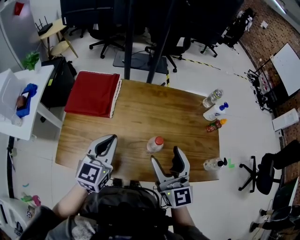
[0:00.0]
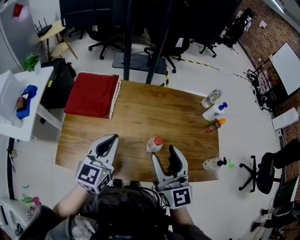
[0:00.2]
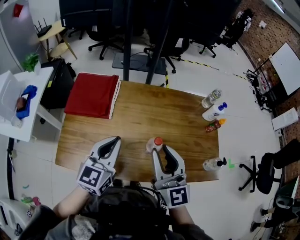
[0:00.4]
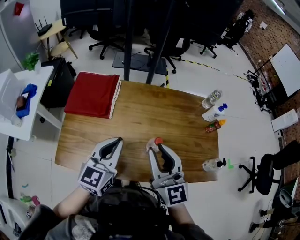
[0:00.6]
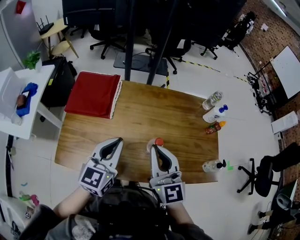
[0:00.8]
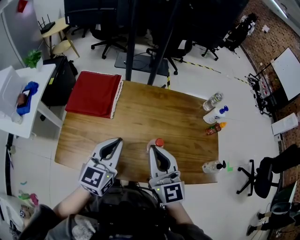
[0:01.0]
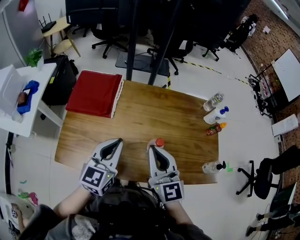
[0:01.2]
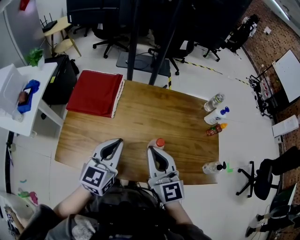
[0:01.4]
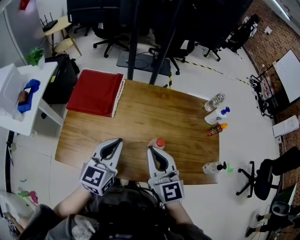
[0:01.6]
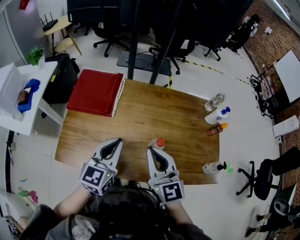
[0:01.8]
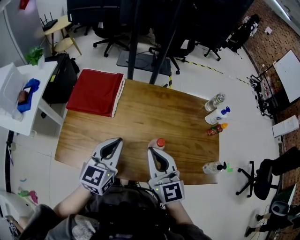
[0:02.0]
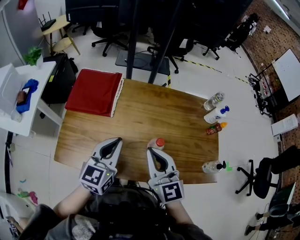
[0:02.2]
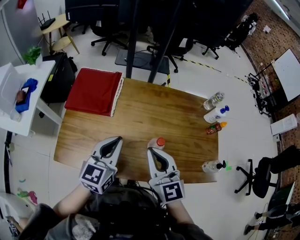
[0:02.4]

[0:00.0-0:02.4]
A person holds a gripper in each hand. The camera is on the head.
0:00.0 to 0:01.2: The right gripper shifts about 5 cm to the left, and closes.
0:01.2 to 0:02.4: The grippers stay close to where they were, moving slightly.

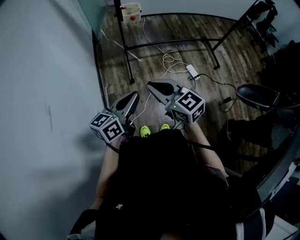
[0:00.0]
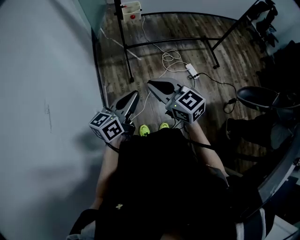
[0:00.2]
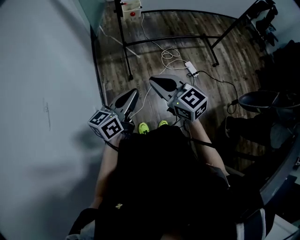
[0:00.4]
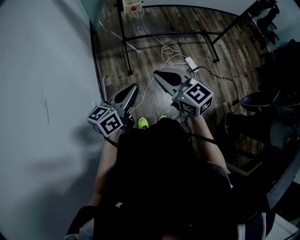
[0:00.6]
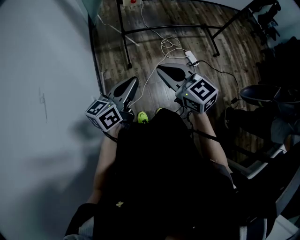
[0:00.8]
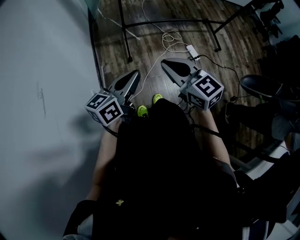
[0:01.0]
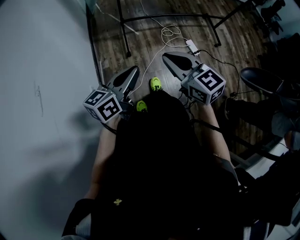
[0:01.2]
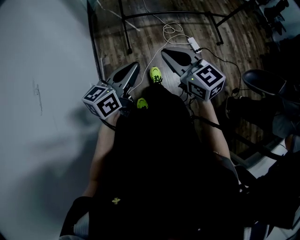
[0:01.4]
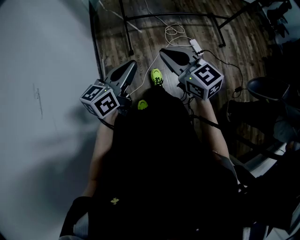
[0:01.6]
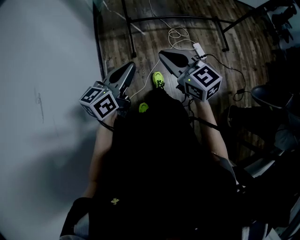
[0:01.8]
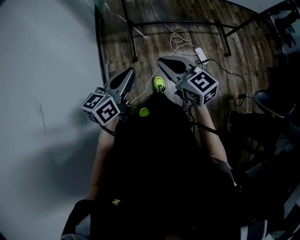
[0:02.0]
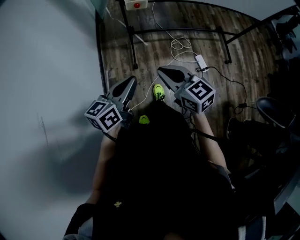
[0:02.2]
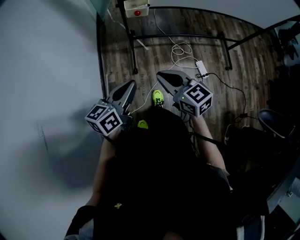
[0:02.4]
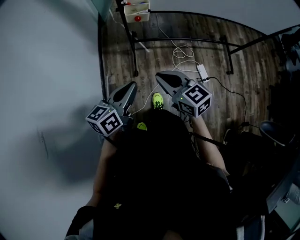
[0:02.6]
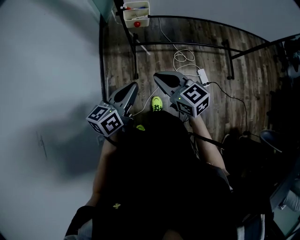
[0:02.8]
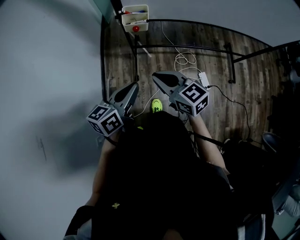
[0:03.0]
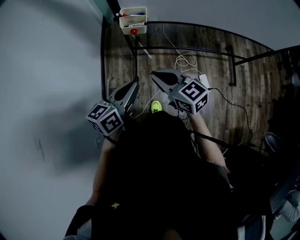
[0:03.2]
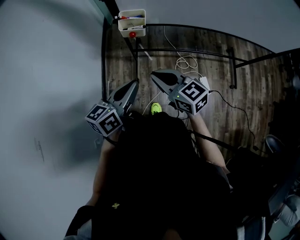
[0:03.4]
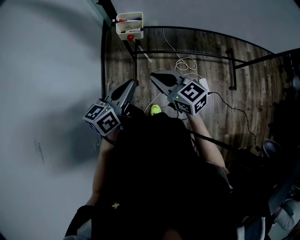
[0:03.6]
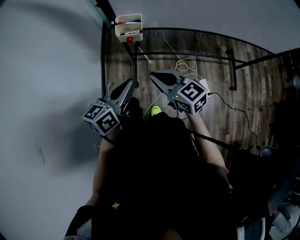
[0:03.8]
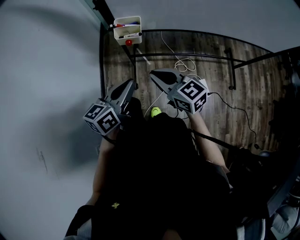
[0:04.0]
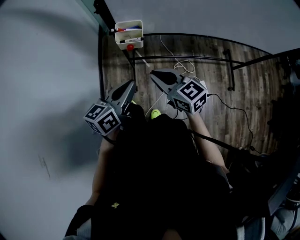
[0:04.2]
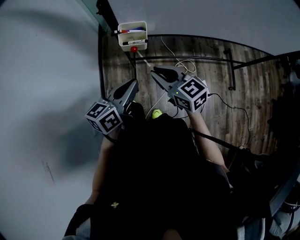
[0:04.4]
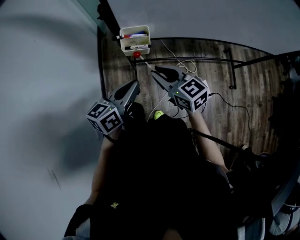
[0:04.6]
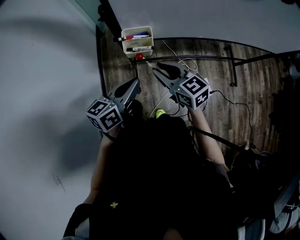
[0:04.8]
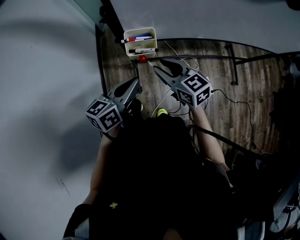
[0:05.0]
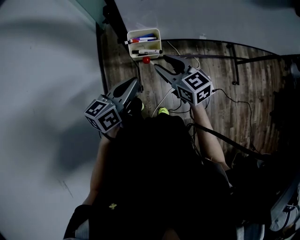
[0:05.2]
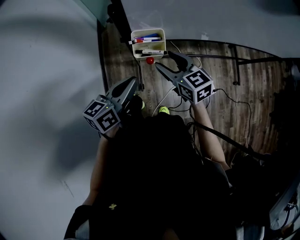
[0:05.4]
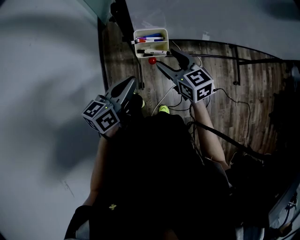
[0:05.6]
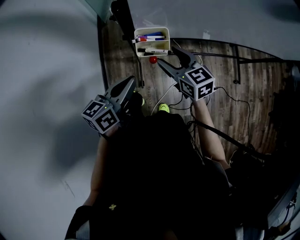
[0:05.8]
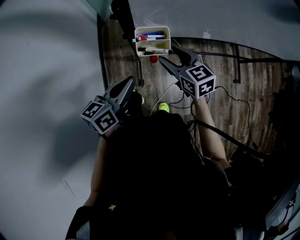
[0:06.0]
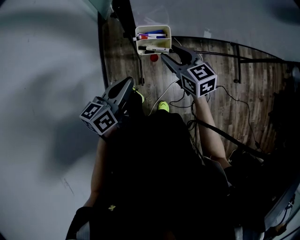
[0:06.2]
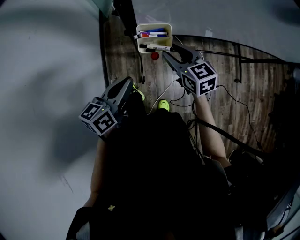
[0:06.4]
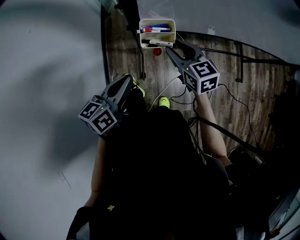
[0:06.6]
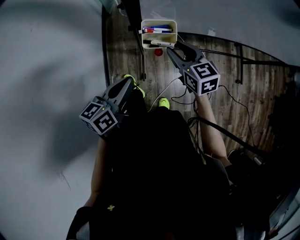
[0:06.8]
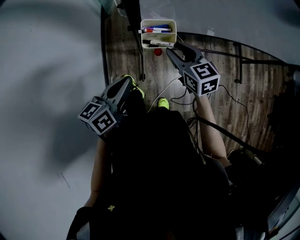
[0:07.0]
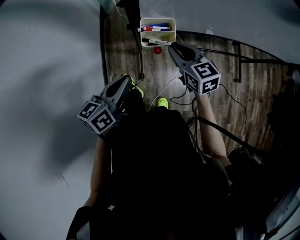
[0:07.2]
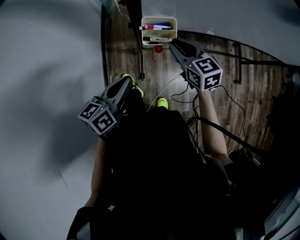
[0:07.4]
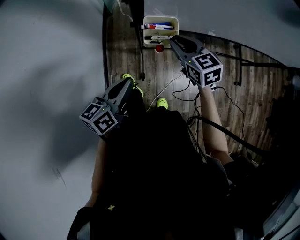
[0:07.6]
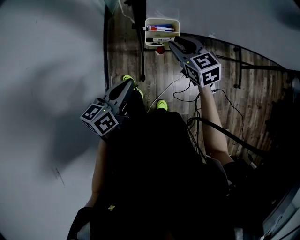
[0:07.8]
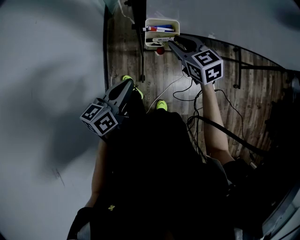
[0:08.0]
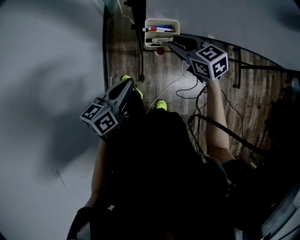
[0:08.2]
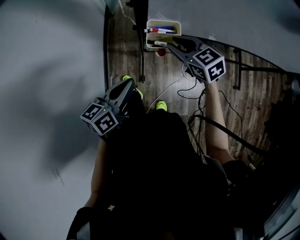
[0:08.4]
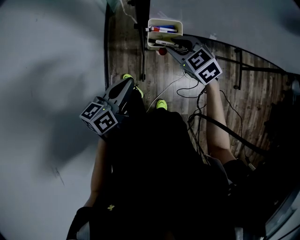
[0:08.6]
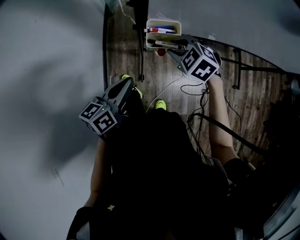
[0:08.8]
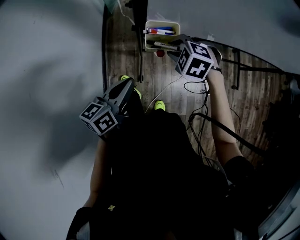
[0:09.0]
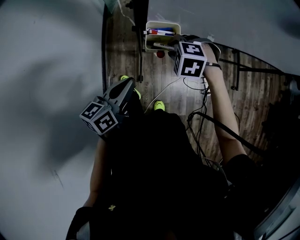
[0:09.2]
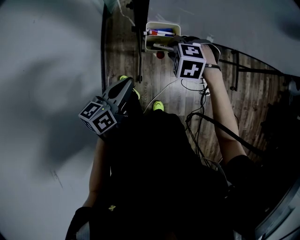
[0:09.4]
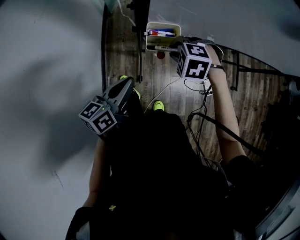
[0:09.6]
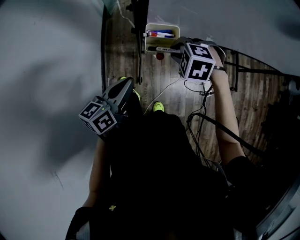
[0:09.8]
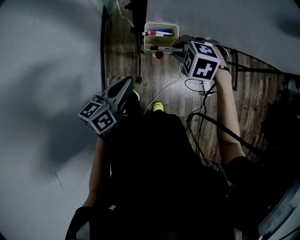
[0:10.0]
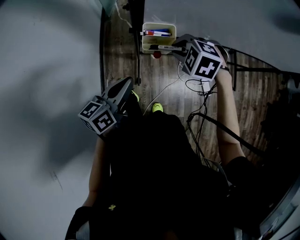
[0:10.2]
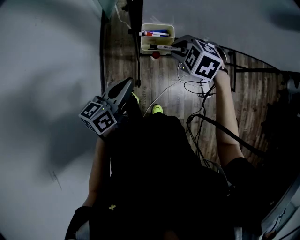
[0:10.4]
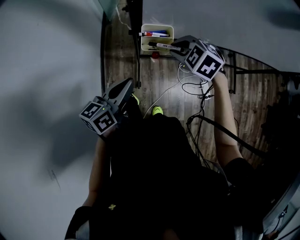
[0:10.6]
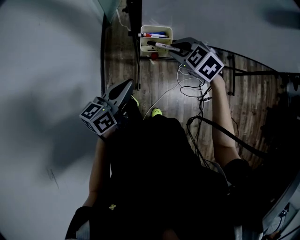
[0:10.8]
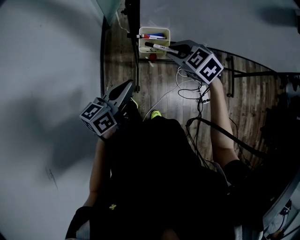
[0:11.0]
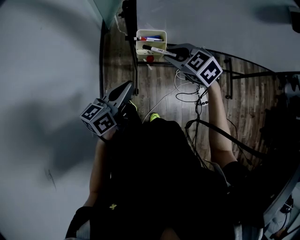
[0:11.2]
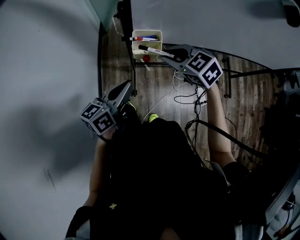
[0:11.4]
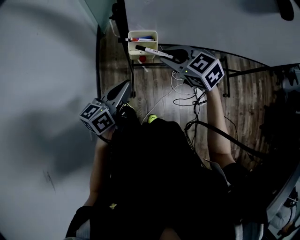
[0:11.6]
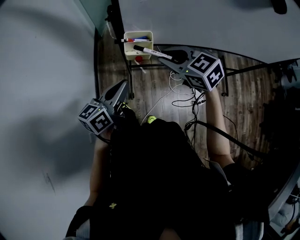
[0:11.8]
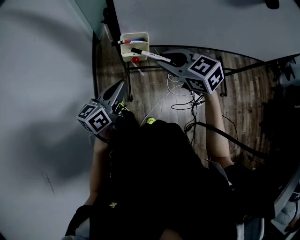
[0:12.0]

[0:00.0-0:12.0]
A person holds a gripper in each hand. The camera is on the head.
0:00.0 to 0:01.6: The right gripper changes place by some 5 cm.
0:01.6 to 0:03.0: The two grippers go approximately 25 cm forward.
0:03.0 to 0:04.4: Both grippers travel together forward, about 10 cm.
0:04.4 to 0:06.0: The right gripper is displaced forward and downward by roughly 15 cm, and opens its fingers. The left gripper is displaced forward and to the left by approximately 10 cm.
0:06.0 to 0:07.6: The right gripper closes its fingers, while the left gripper moves roughly 5 cm.
0:07.6 to 0:09.0: The right gripper ends up roughly 5 cm from where it was, and tilts its fingers some 40 degrees downward.
0:09.0 to 0:10.4: The grippers make only small movements.
0:10.4 to 0:12.0: The right gripper goes approximately 10 cm upward and backward, and tilts its fingers roughly 30 degrees upward, while the left gripper ends up roughly 5 cm from where it was.

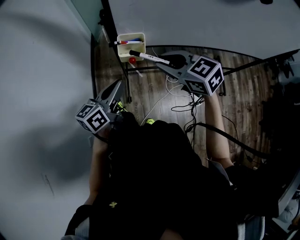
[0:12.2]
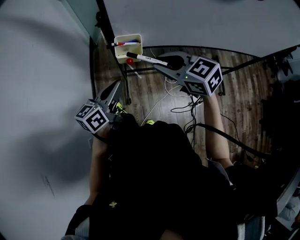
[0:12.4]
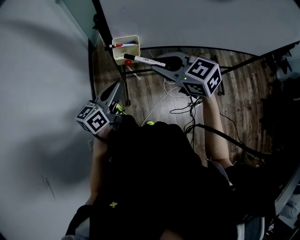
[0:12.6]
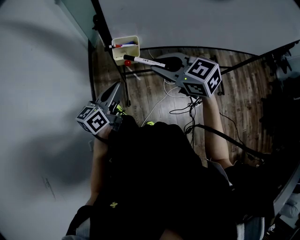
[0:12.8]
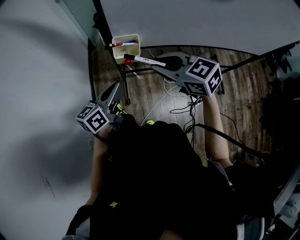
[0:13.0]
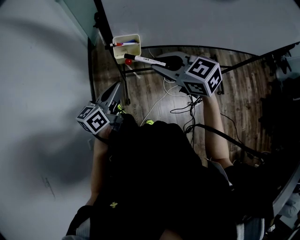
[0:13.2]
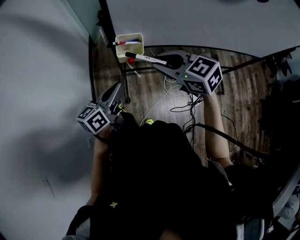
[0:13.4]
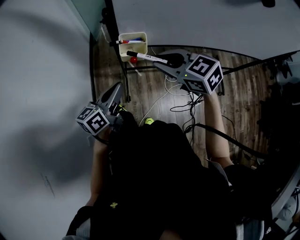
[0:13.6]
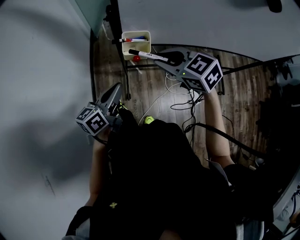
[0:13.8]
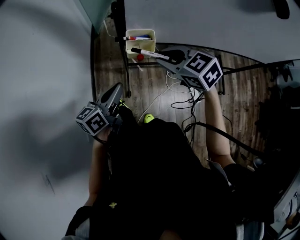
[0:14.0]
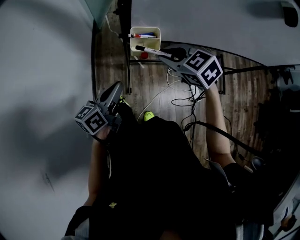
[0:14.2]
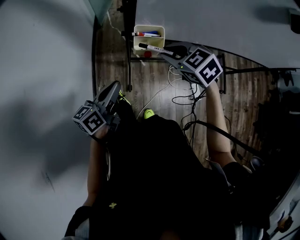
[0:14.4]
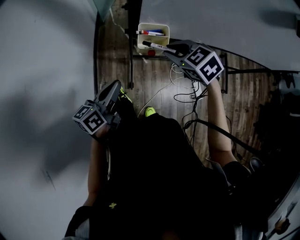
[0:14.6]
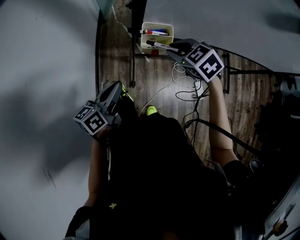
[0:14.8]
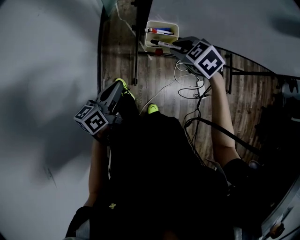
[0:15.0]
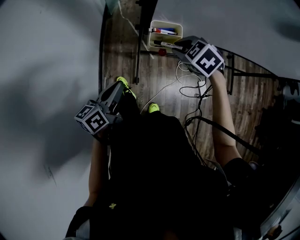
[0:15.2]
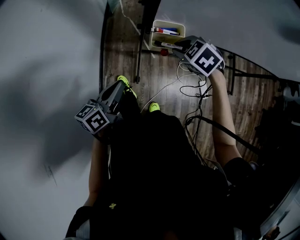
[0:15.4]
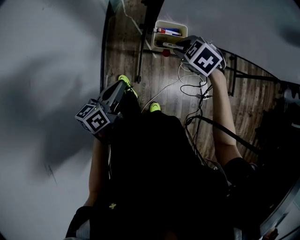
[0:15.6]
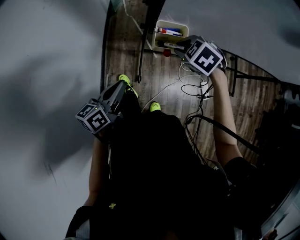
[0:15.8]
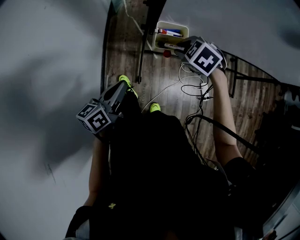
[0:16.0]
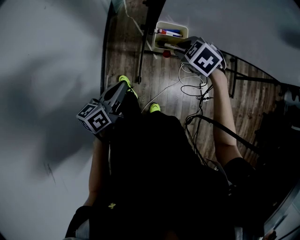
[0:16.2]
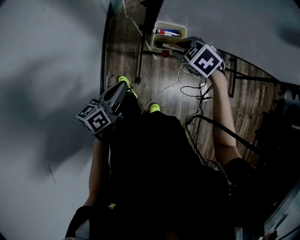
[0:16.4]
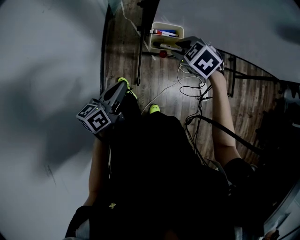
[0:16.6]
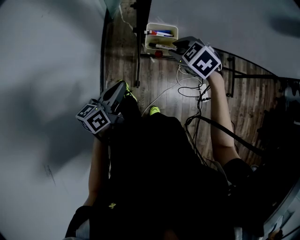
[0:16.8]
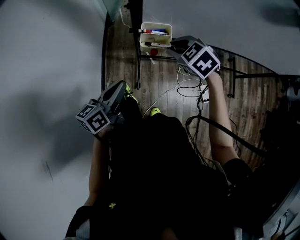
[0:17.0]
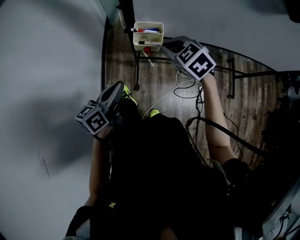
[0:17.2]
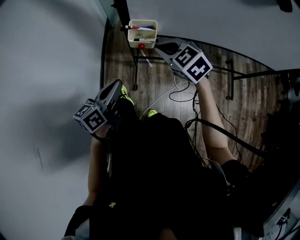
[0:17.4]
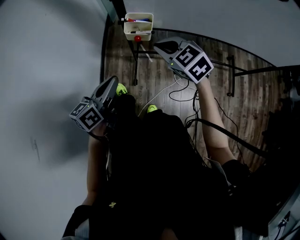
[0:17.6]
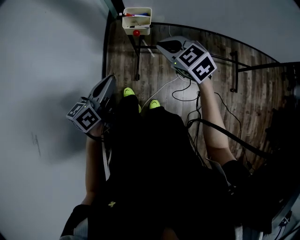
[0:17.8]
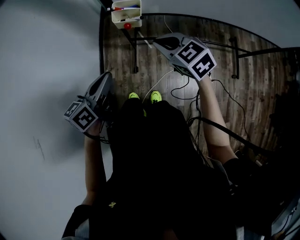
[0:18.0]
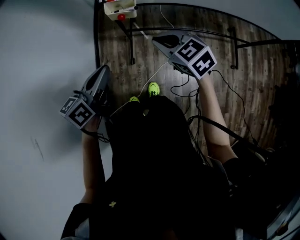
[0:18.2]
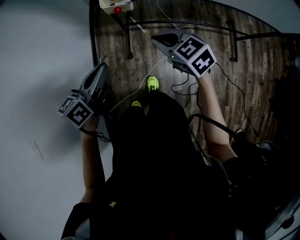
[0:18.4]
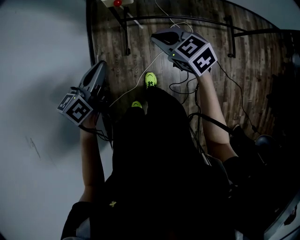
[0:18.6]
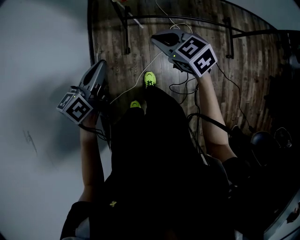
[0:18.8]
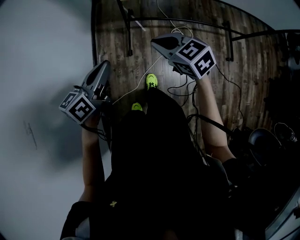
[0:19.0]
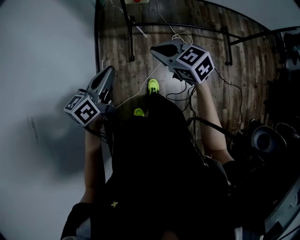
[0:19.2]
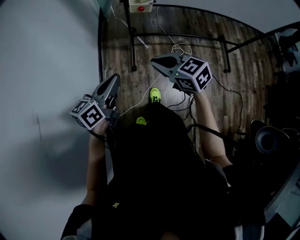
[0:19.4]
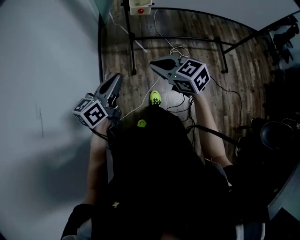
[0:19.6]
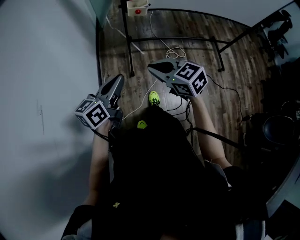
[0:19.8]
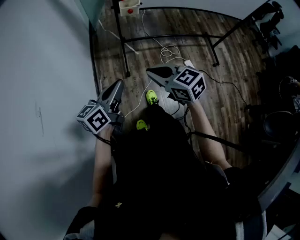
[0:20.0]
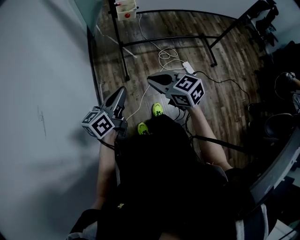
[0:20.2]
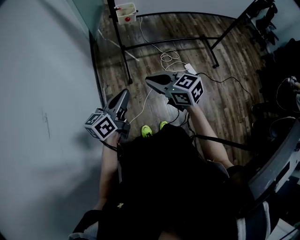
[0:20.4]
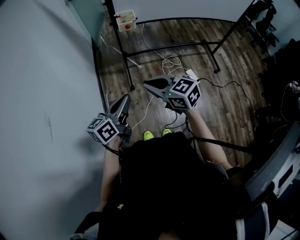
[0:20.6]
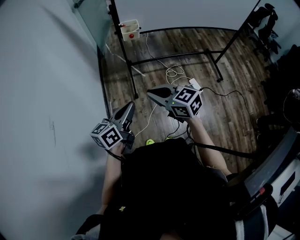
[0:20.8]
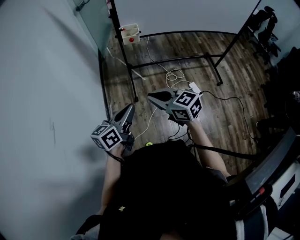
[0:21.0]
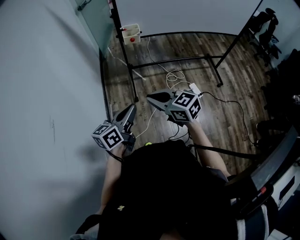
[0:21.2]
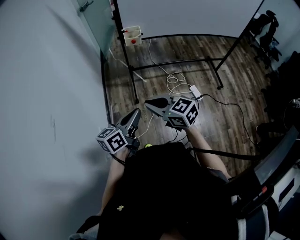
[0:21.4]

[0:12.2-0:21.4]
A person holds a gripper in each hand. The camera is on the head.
0:12.2 to 0:13.8: There are only small adjustments of the grippers.
0:13.8 to 0:15.2: The left gripper goes roughly 10 cm to the left. Meanwhile the right gripper heads downward and forward, covering roughly 15 cm, and turns by some 30 degrees.
0:15.2 to 0:16.8: The grippers stay close to where they were, moving slightly.
0:16.8 to 0:18.4: The right gripper shifts approximately 20 cm backward, changes its angle by approximately 30 degrees, and closes its fingers, while the left gripper goes approximately 15 cm backward and to the right.
0:18.4 to 0:19.8: Both grippers move backward and to the left, some 25 cm.
0:19.8 to 0:21.4: Both grippers travel together backward, about 10 cm.
